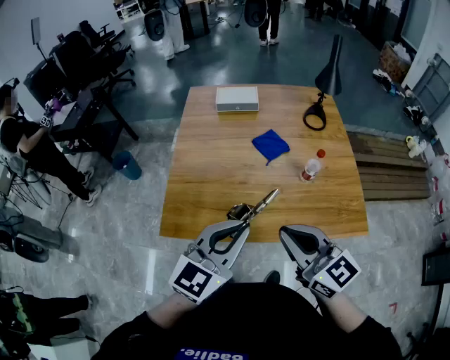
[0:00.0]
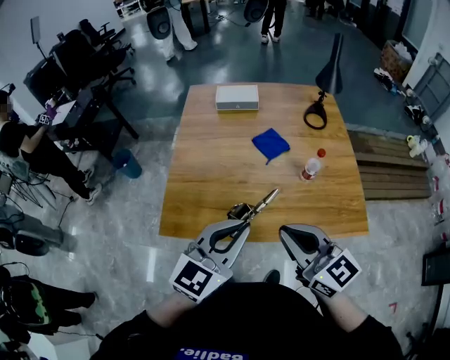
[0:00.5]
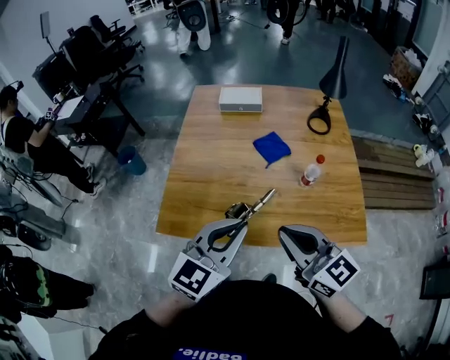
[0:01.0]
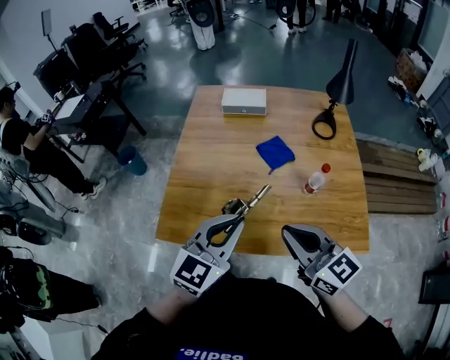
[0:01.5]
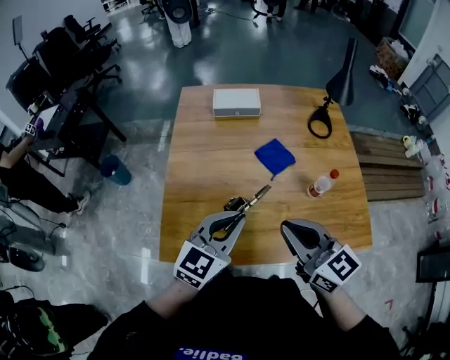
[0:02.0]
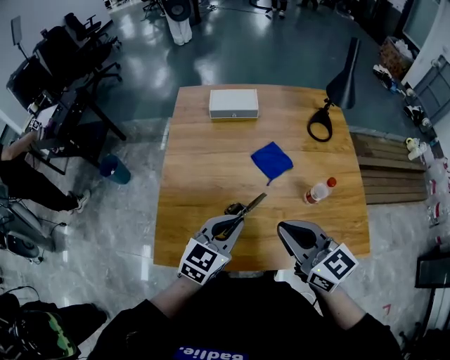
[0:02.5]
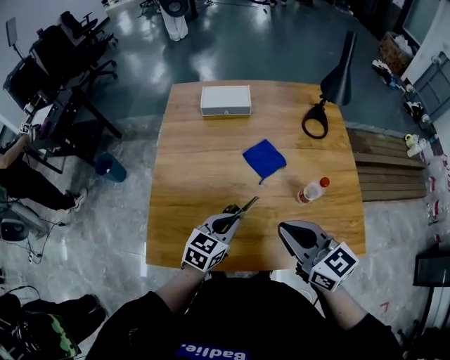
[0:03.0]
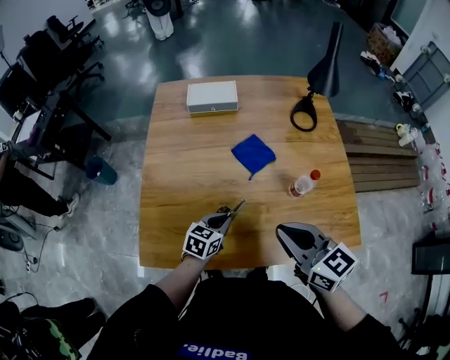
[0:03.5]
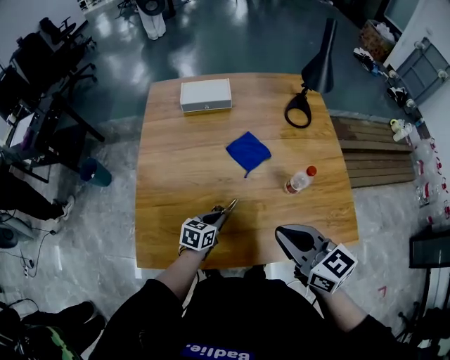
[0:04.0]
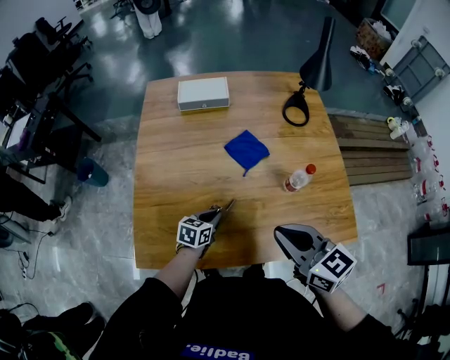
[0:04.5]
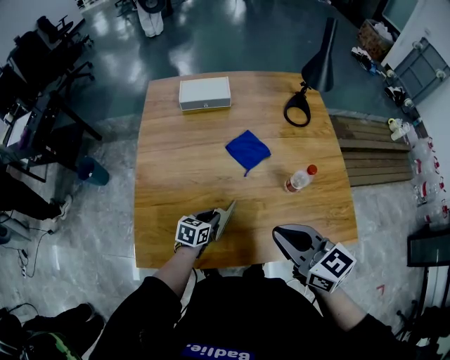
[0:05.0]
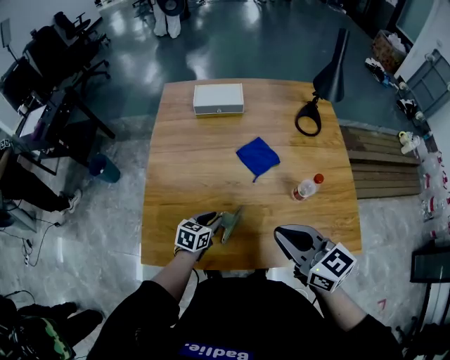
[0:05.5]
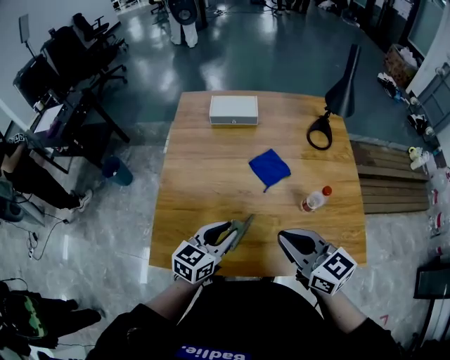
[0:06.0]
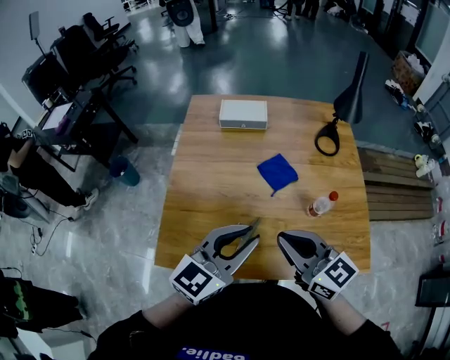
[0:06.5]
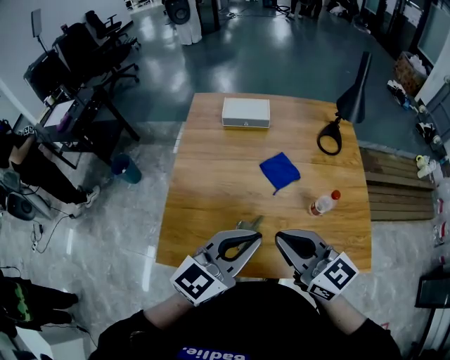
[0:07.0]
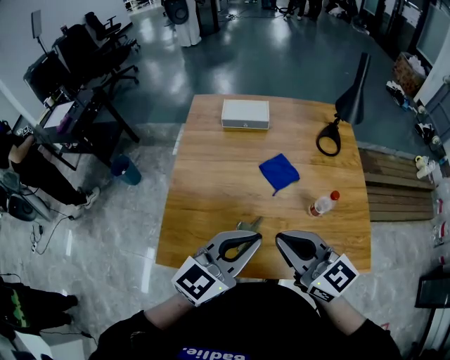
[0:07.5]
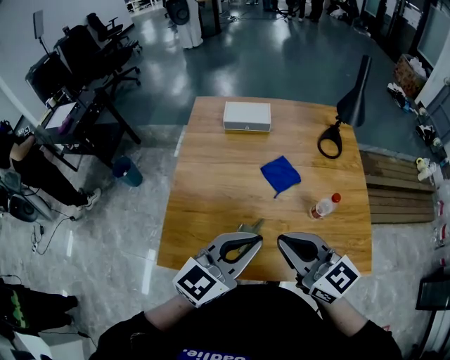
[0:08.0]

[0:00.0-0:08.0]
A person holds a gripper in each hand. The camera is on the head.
0:00.0 to 0:02.0: The left gripper heads forward and downward, covering roughly 15 cm. Meanwhile the right gripper moves forward, about 15 cm.
0:02.0 to 0:04.0: The left gripper travels downward by some 30 cm, and changes its angle by some 40 degrees, while the right gripper goes some 10 cm to the right and downward.
0:04.0 to 0:06.0: The left gripper heads upward, covering some 20 cm, and changes its angle by about 20 degrees.
0:06.0 to 0:08.0: The left gripper moves upward, about 15 cm, and rotates approximately 20 degrees, while the right gripper heads upward, covering approximately 5 cm.

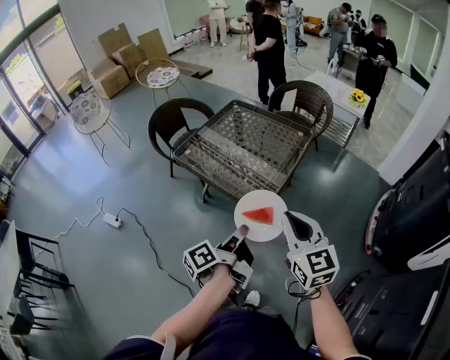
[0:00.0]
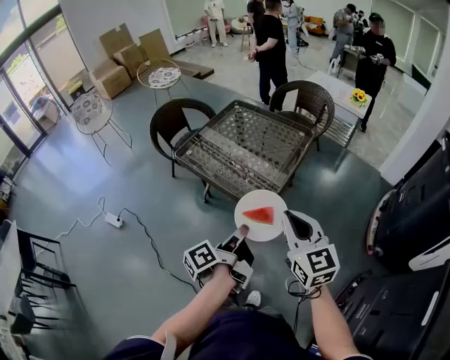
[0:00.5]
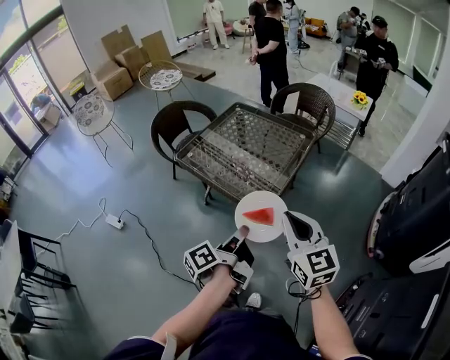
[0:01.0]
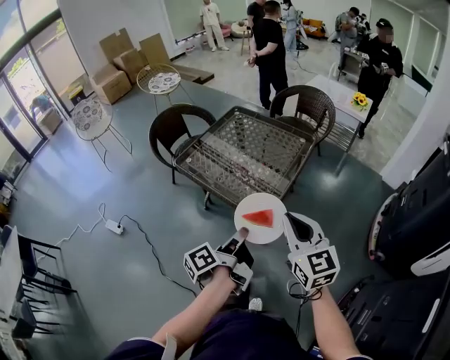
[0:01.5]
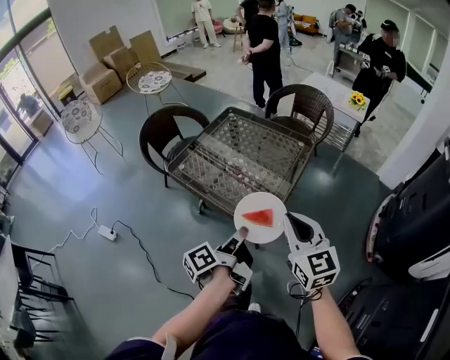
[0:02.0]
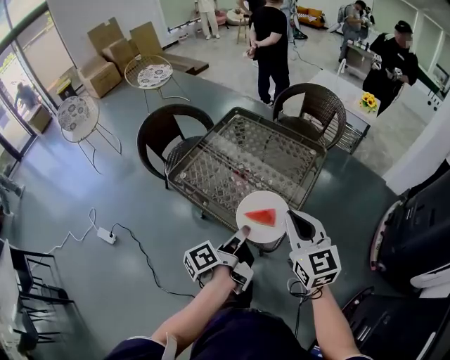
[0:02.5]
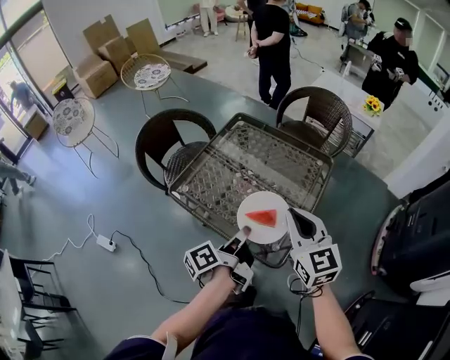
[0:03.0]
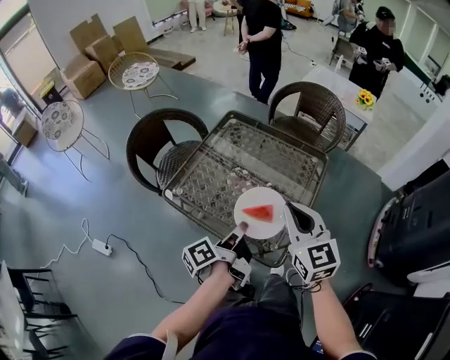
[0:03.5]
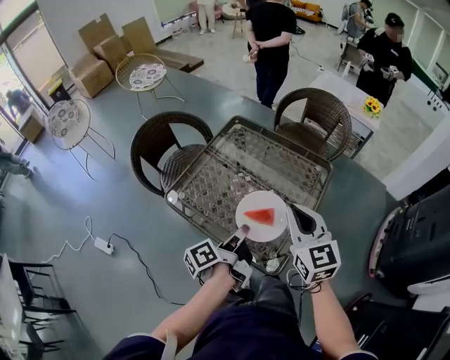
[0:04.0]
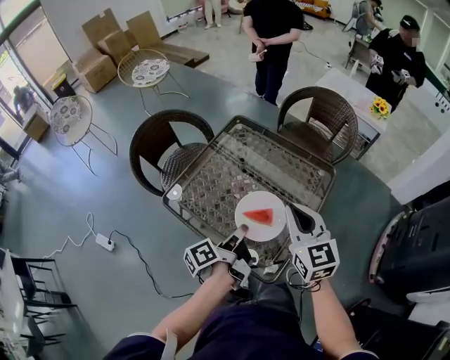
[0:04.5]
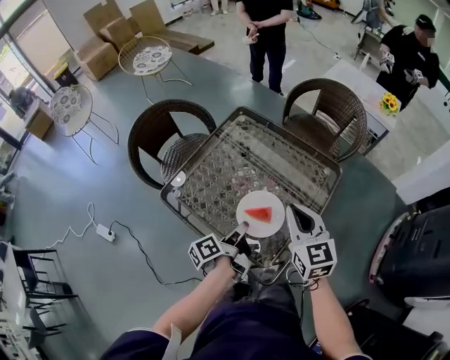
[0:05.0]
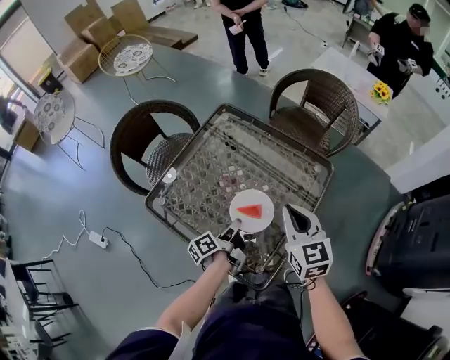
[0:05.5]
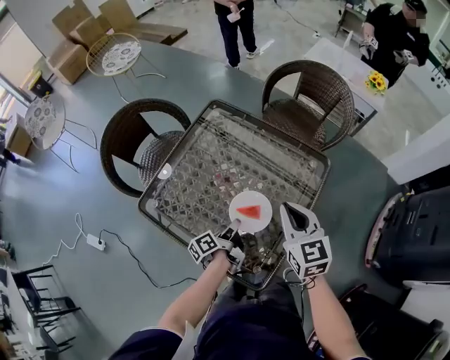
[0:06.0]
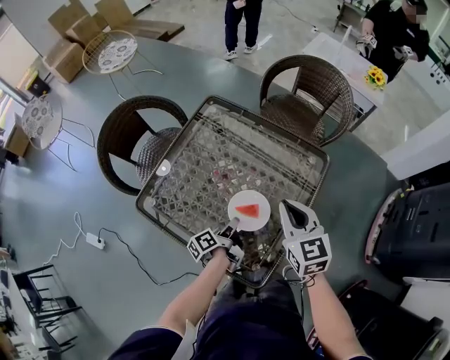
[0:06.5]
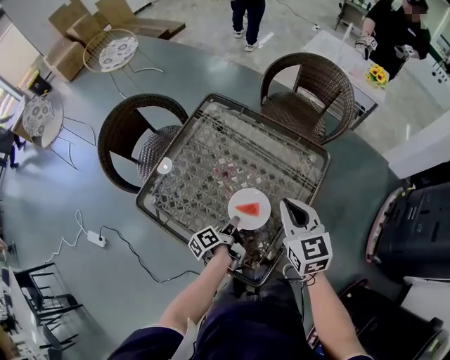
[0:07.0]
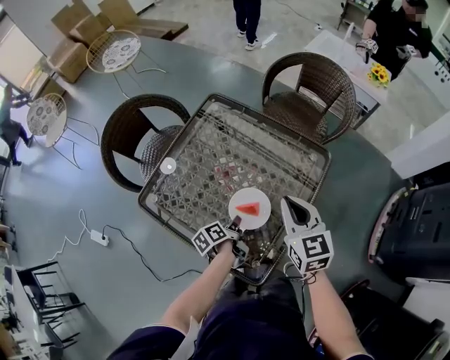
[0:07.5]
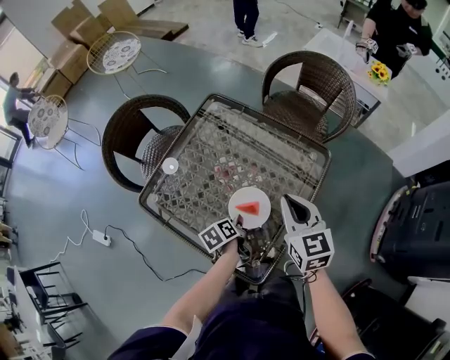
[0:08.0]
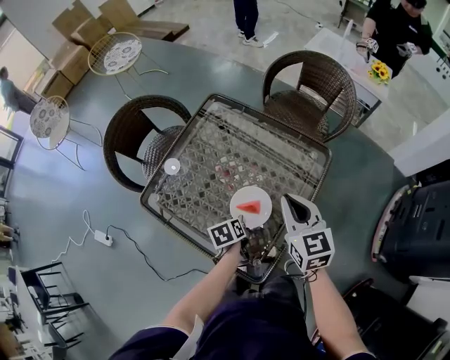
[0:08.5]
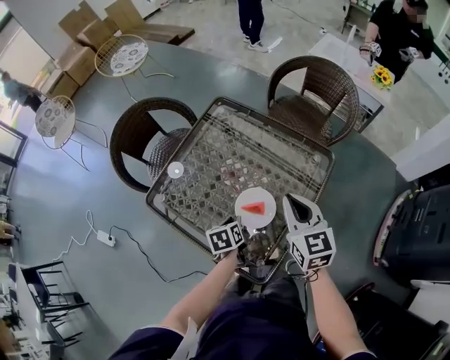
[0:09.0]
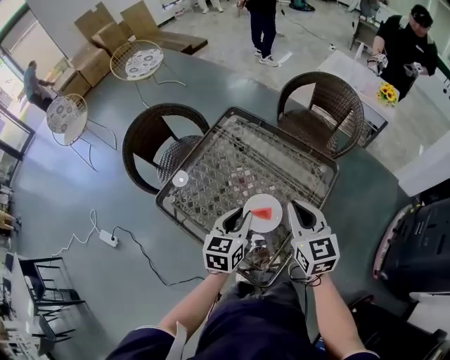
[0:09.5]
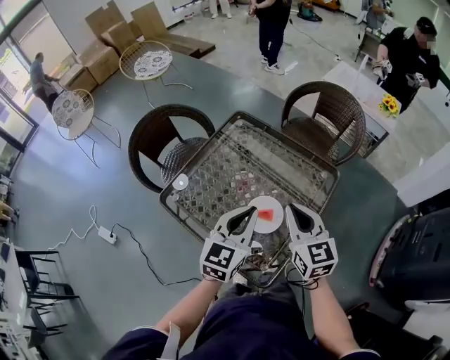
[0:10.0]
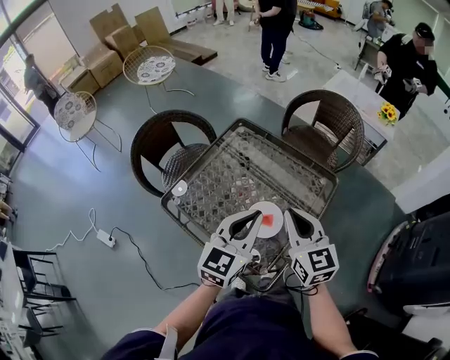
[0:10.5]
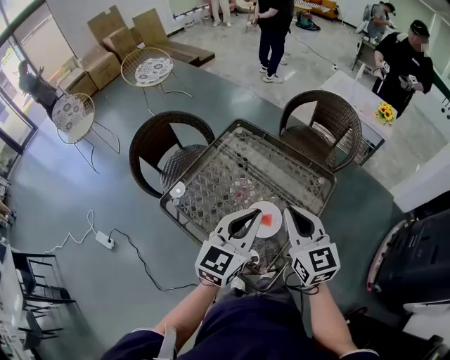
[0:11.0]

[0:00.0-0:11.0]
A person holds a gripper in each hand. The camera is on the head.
0:00.0 to 0:02.0: The right gripper moves approximately 10 cm.
0:02.0 to 0:03.5: The right gripper changes place by some 20 cm.
0:03.5 to 0:05.5: The right gripper moves about 15 cm.
0:09.0 to 0:11.0: The right gripper goes roughly 10 cm upward.

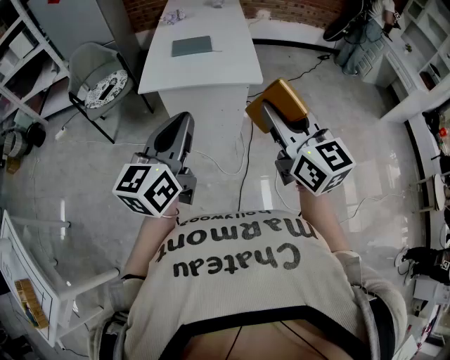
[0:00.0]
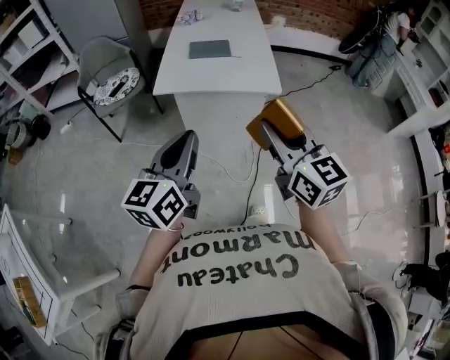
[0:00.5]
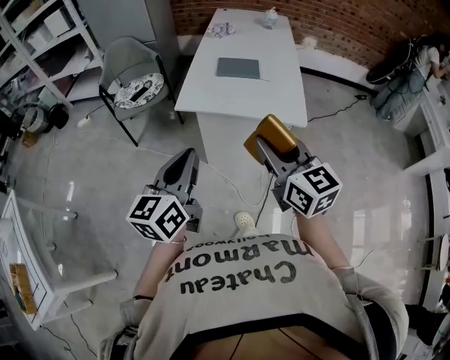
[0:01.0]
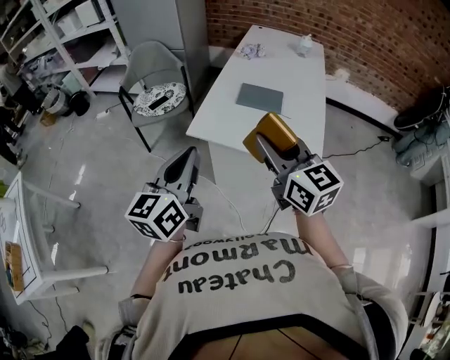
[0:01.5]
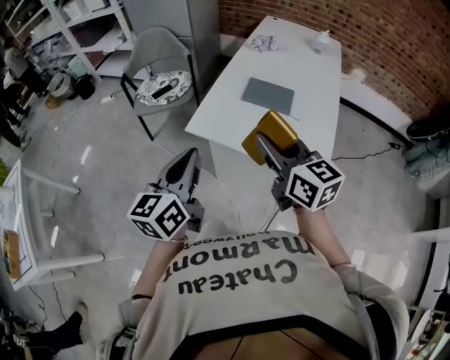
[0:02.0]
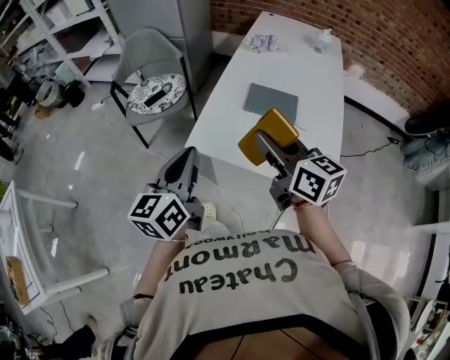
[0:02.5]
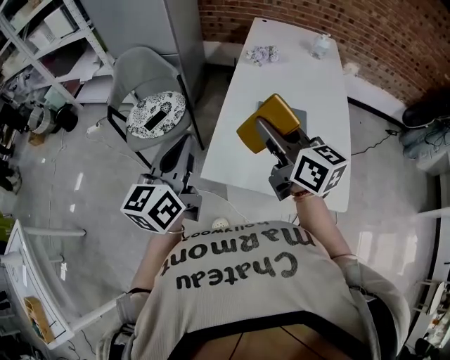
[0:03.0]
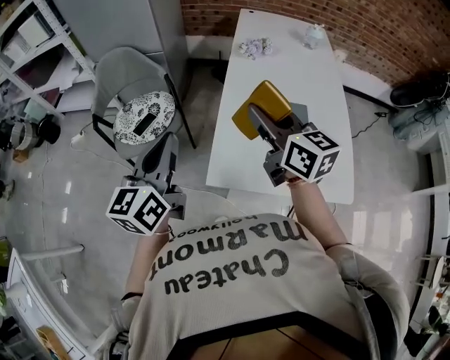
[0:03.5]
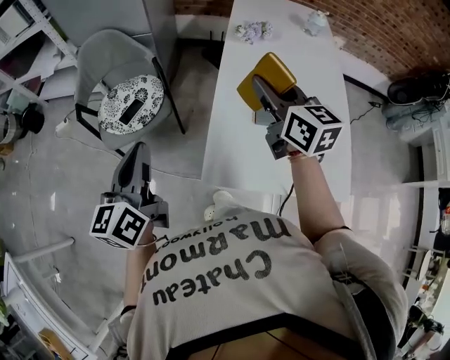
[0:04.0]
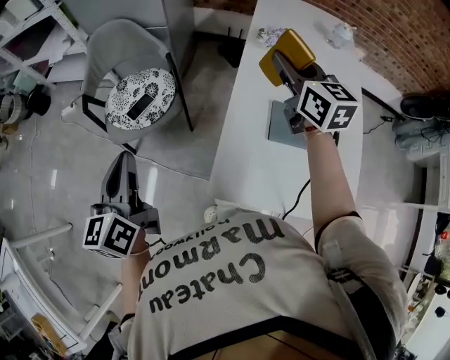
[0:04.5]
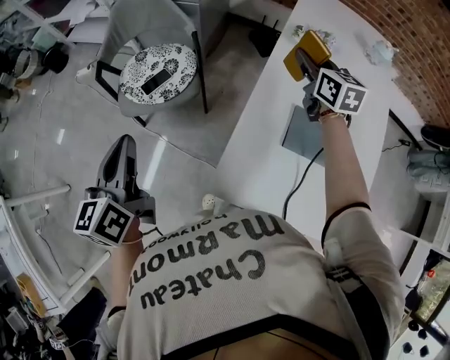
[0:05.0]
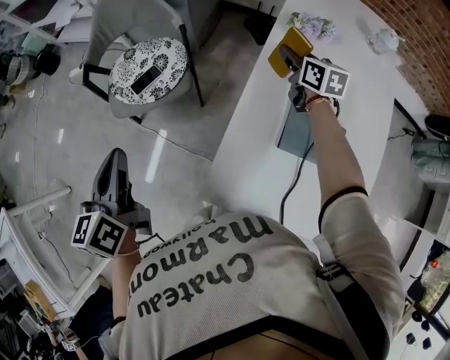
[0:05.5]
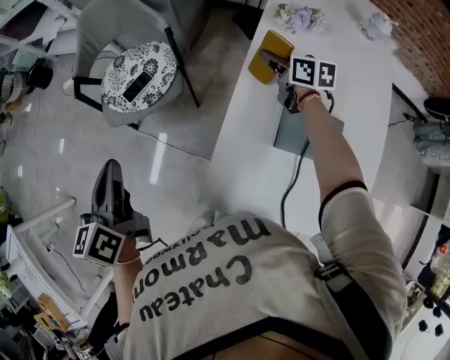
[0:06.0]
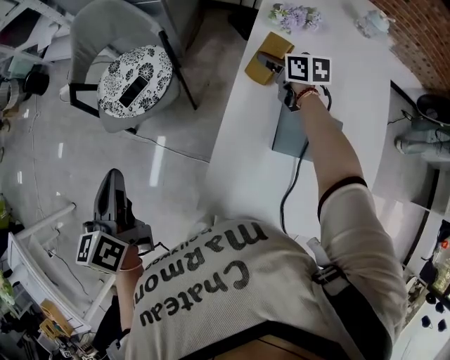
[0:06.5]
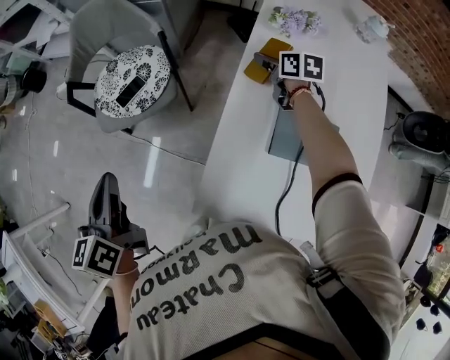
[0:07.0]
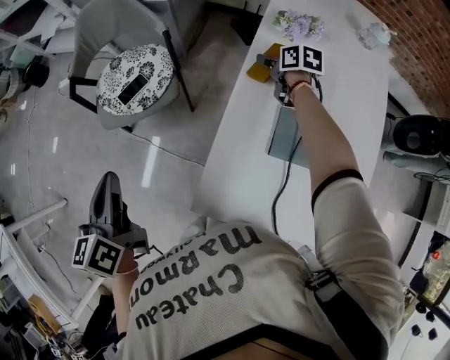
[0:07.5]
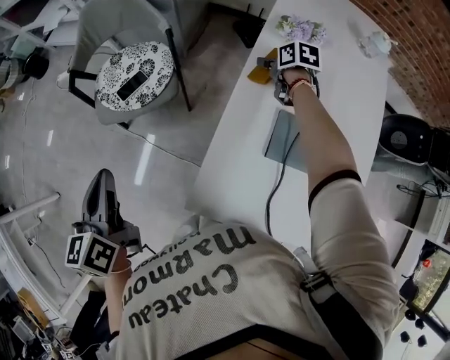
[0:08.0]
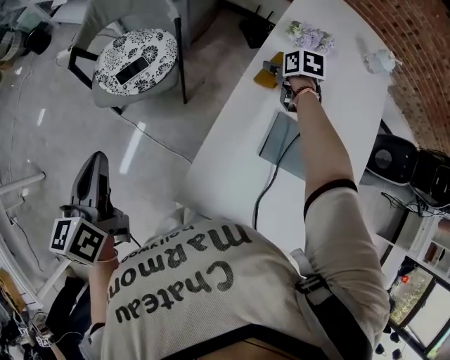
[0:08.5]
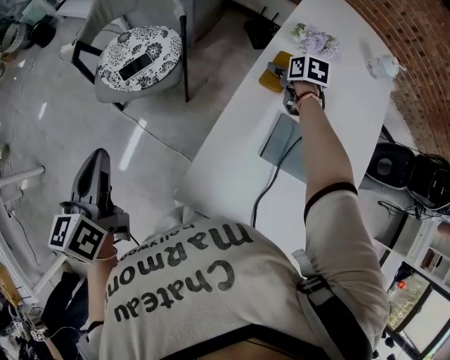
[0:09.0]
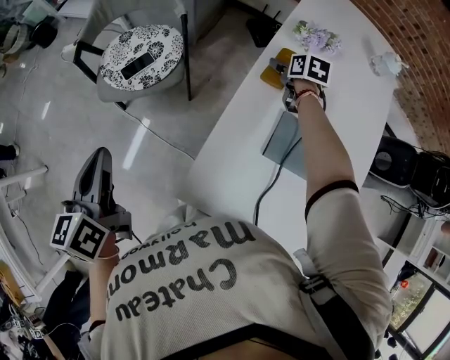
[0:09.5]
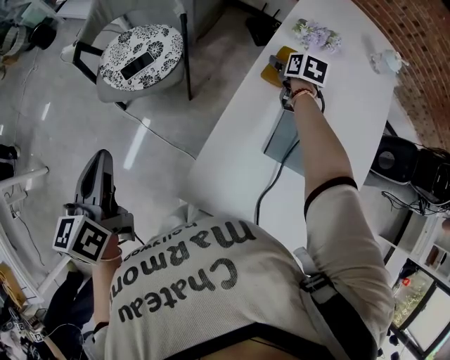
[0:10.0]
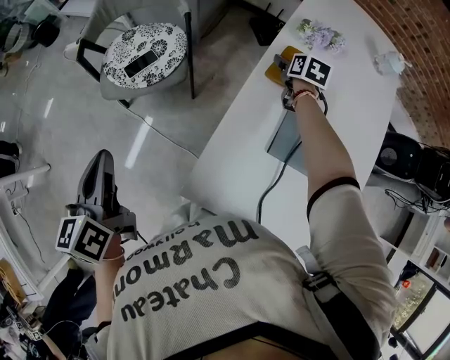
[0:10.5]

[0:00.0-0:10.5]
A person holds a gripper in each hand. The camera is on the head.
0:00.0 to 0:02.0: The left gripper changes place by about 30 cm, and changes its angle by some 30 degrees; the right gripper moves approximately 40 cm, and changes its angle by roughly 30 degrees.
0:02.0 to 0:04.0: The left gripper moves forward and to the left, about 40 cm, while the right gripper shifts some 35 cm forward.
0:04.0 to 0:06.5: The left gripper goes about 10 cm forward and downward, and swivels roughly 20 degrees; the right gripper is displaced downward and forward by approximately 35 cm, and swivels some 30 degrees.
0:06.5 to 0:08.5: The right gripper changes its angle by about 20 degrees, and opens up.
0:08.5 to 0:10.5: There are only small adjustments of the grippers.
